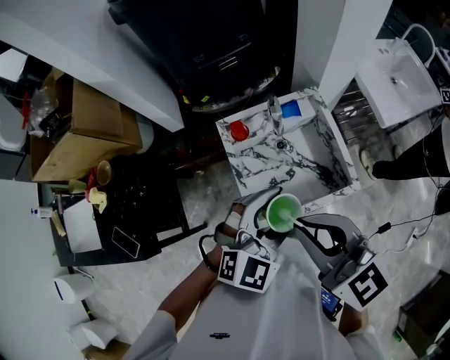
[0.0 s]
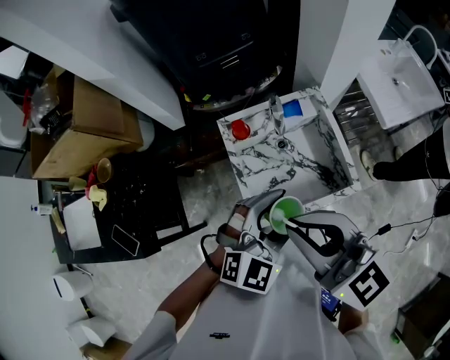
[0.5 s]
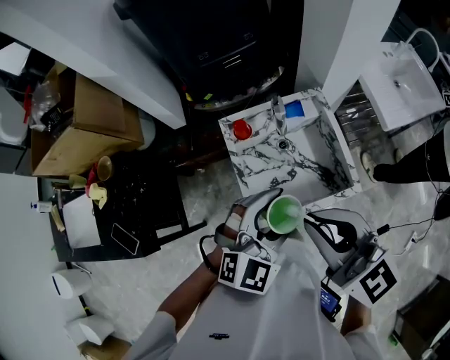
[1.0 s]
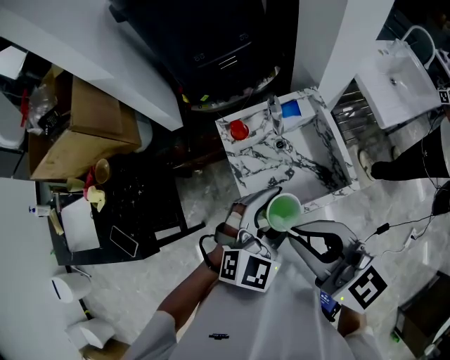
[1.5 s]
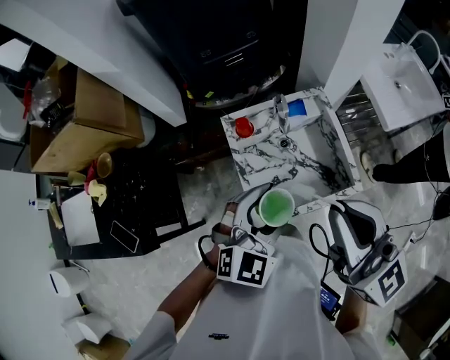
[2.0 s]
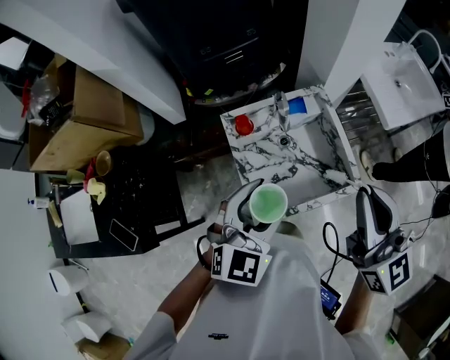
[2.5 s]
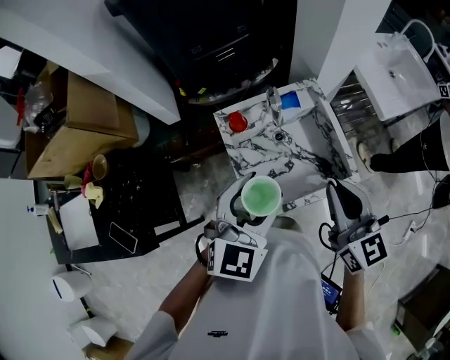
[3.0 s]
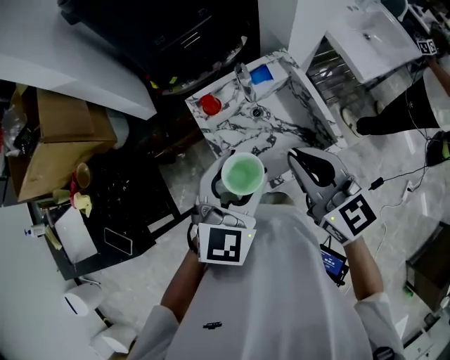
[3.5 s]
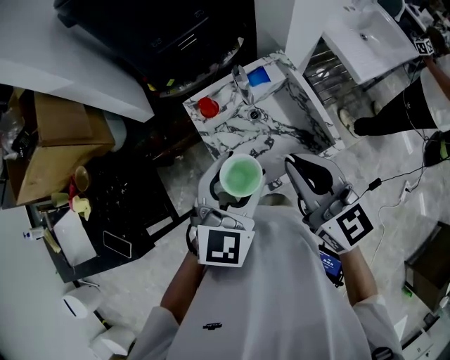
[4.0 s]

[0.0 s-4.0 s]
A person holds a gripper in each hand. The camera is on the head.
0.0 to 2.0 s: The right gripper travels upward by about 5 cm, and turns by about 20 degrees.
2.0 to 4.0 s: The right gripper heads downward, covering approximately 10 cm, and turns by roughly 20 degrees.

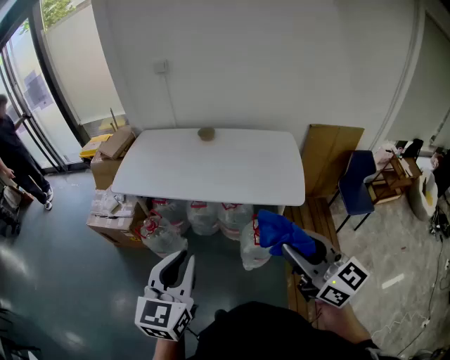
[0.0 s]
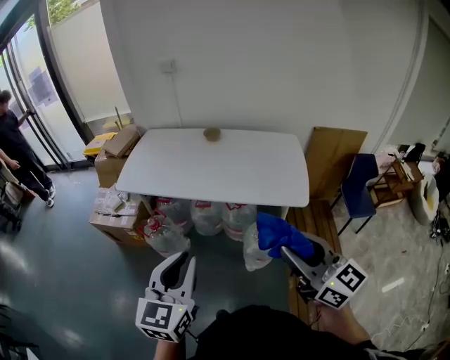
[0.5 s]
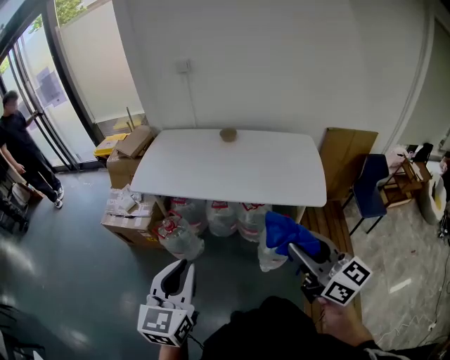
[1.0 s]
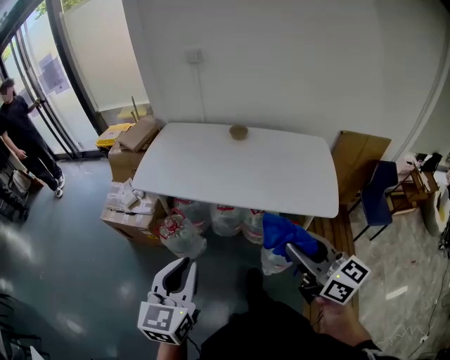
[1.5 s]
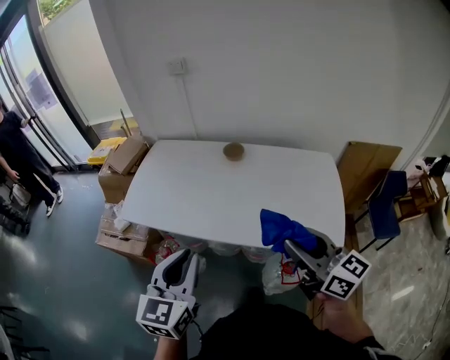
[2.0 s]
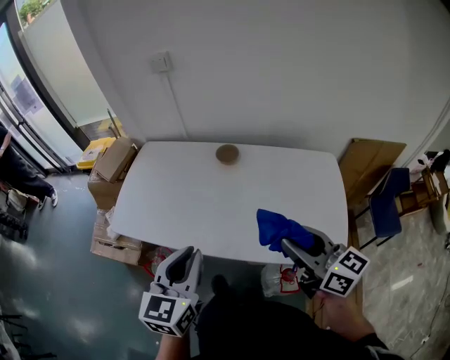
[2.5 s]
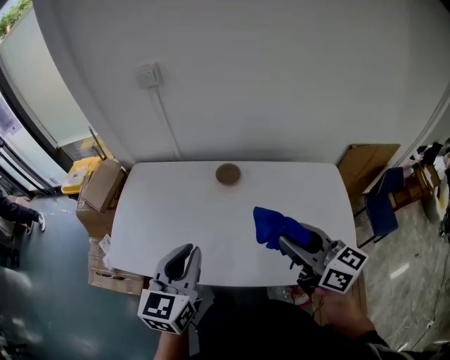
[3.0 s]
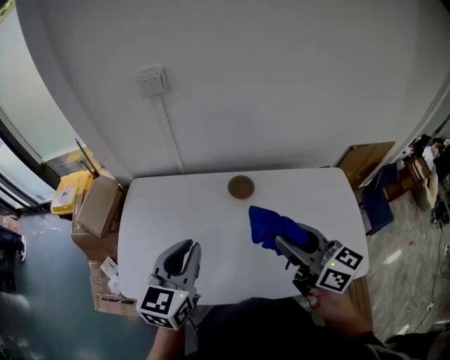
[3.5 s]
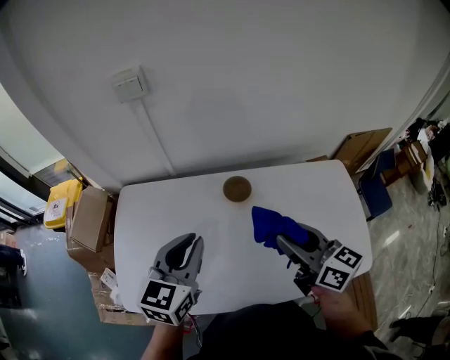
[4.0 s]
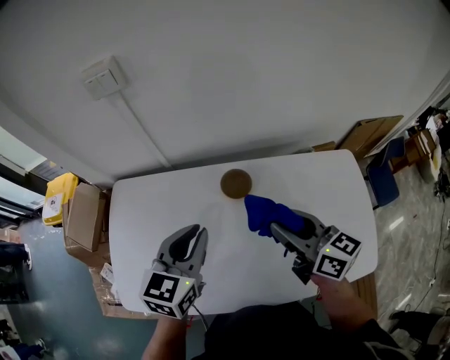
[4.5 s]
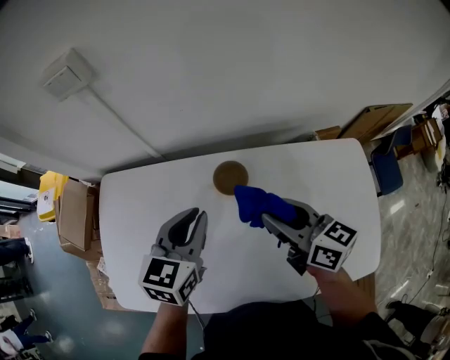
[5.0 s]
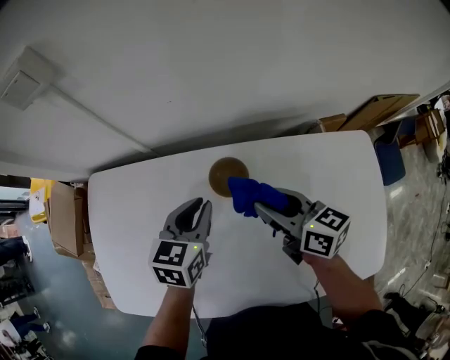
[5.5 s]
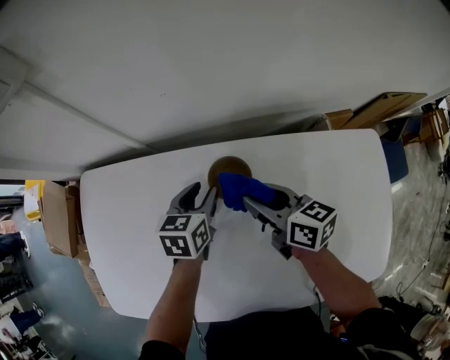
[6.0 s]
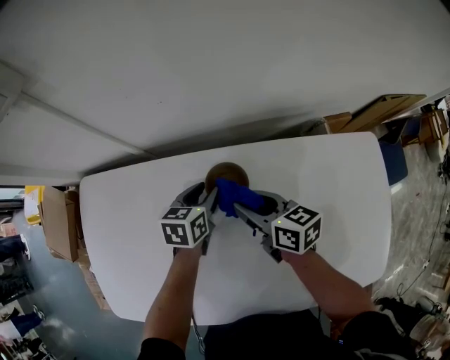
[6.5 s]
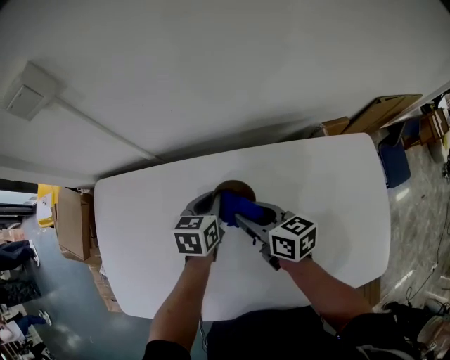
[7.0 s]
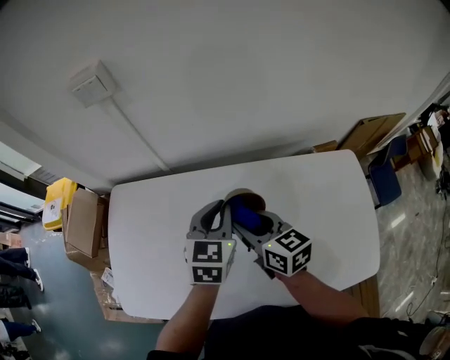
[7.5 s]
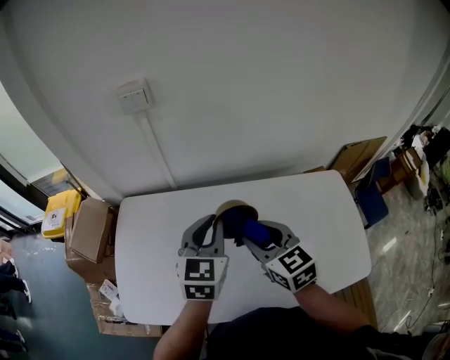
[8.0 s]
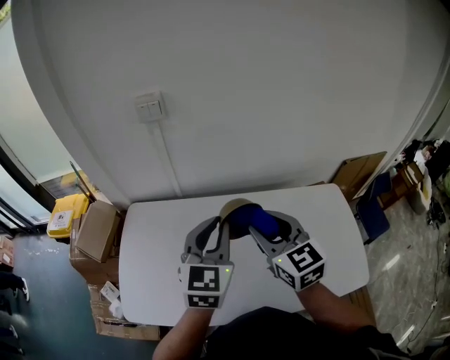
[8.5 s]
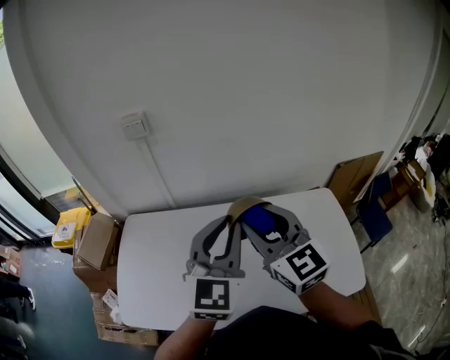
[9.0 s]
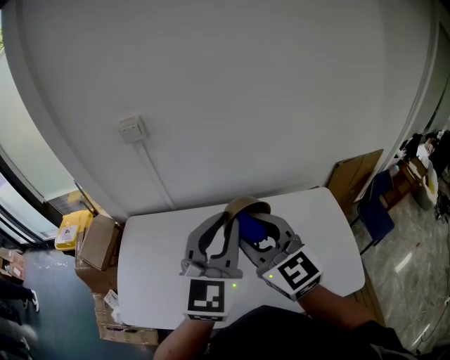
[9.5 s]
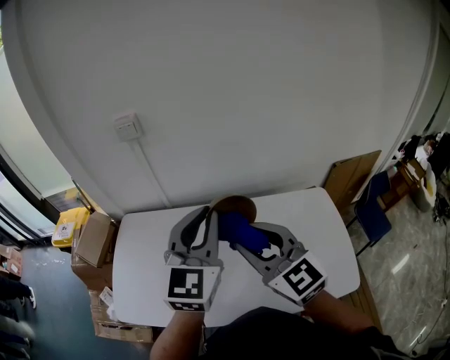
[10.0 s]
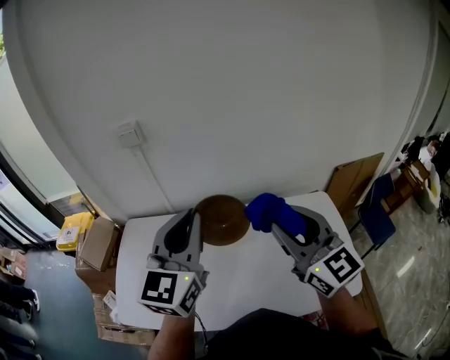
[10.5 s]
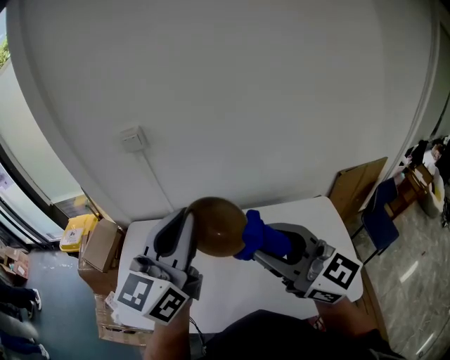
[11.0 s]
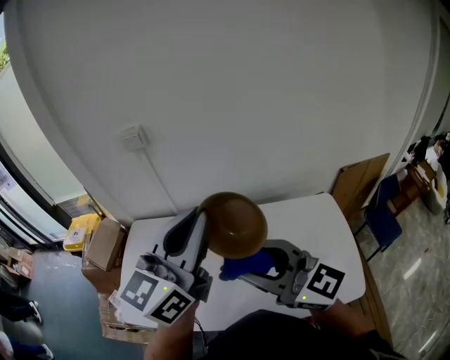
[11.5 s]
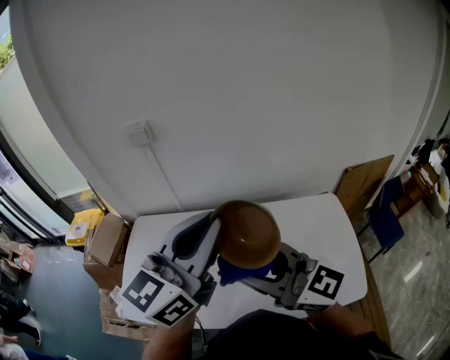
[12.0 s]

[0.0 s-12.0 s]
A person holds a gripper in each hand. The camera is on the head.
0.0 to 2.0 s: The grippers both shift forward by some 30 cm.
2.0 to 4.0 s: The two grippers go roughly 40 cm forward. The left gripper rotates some 20 degrees.
4.0 to 6.0 s: Both grippers travel together downward and forward, some 30 cm. The right gripper swivels roughly 20 degrees. Meanwhile the left gripper changes its angle by about 30 degrees, and opens up.
6.0 to 8.0 s: The left gripper travels upward and backward by some 30 cm, turns by roughly 30 degrees, and closes up; the right gripper goes approximately 25 cm upward, backward and to the left, and changes its angle by about 40 degrees.
8.0 to 10.0 s: The left gripper heads upward, to the right and backward, covering approximately 20 cm, and swivels about 20 degrees. The right gripper shifts some 15 cm upward, backward and to the right, and swivels some 30 degrees.
10.0 to 12.0 s: The right gripper travels backward and upward by roughly 10 cm, travels to the right and back again, some 10 cm each way, and rotates roughly 30 degrees. Meanwhile the left gripper travels upward and backward by about 10 cm, and changes its angle by roughly 30 degrees.

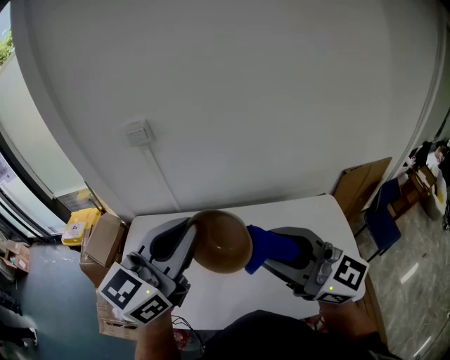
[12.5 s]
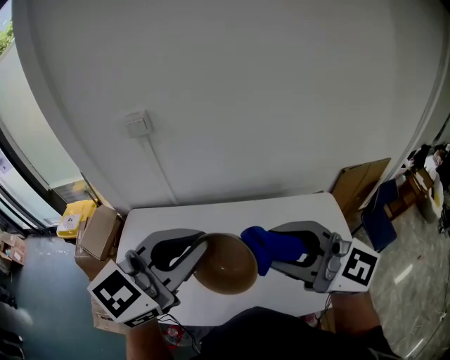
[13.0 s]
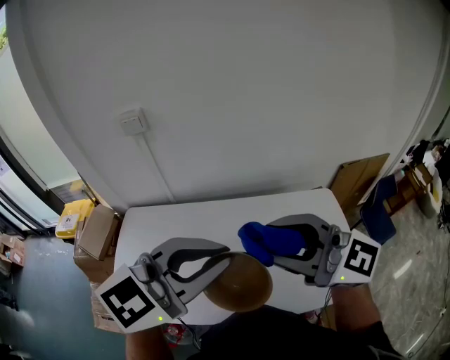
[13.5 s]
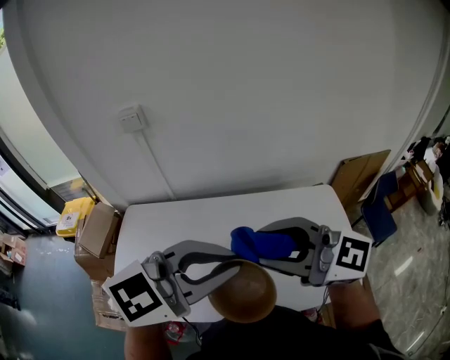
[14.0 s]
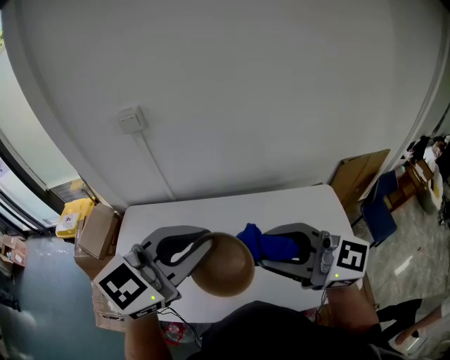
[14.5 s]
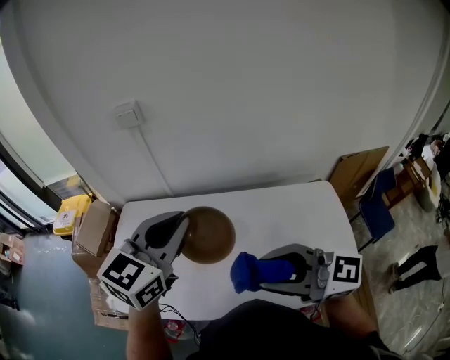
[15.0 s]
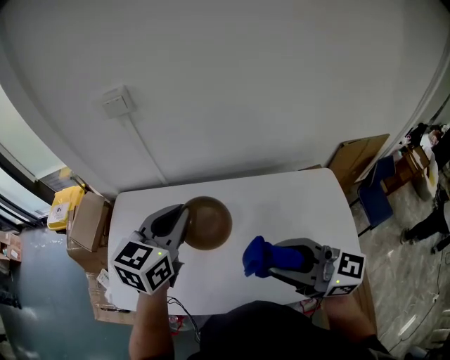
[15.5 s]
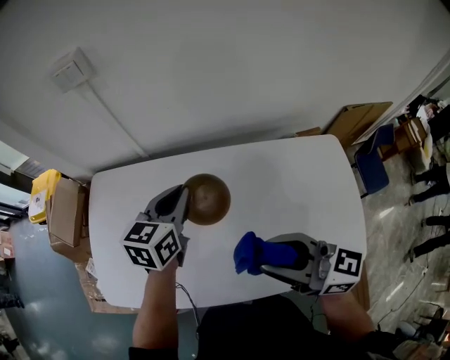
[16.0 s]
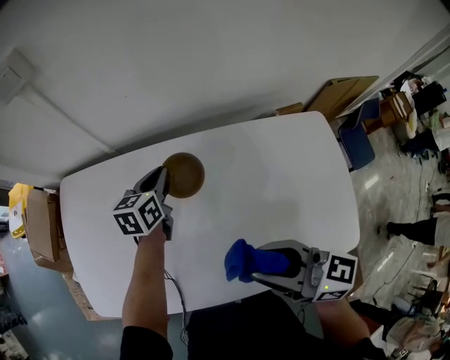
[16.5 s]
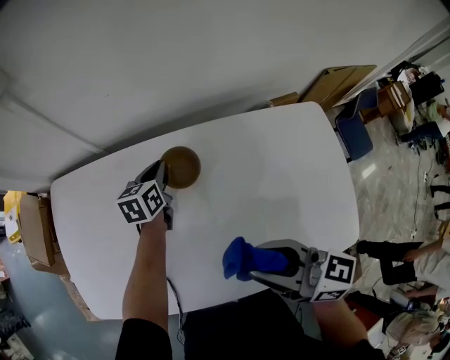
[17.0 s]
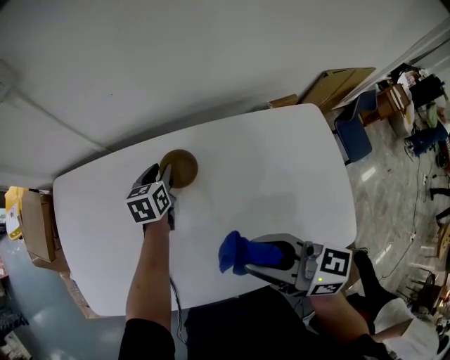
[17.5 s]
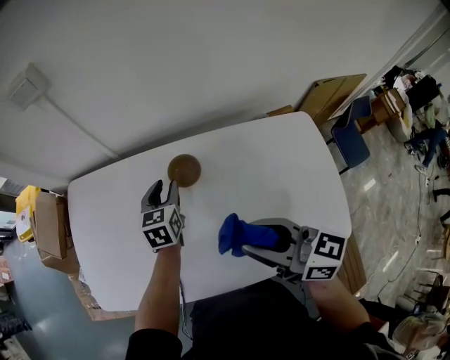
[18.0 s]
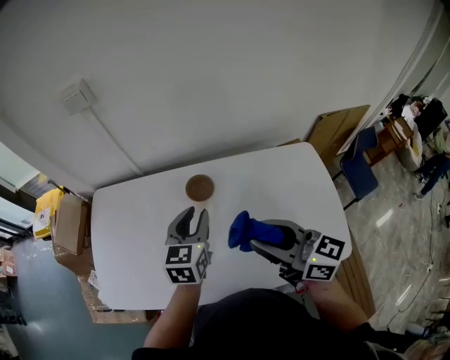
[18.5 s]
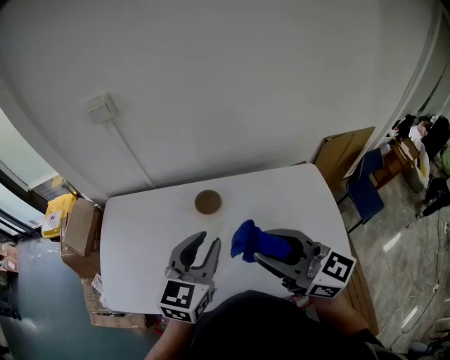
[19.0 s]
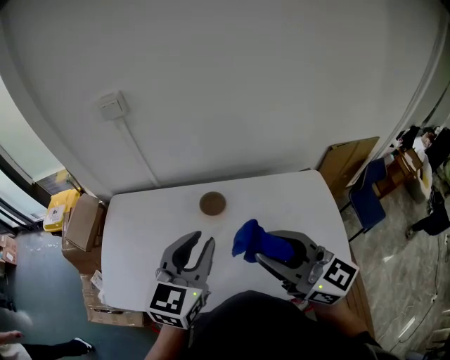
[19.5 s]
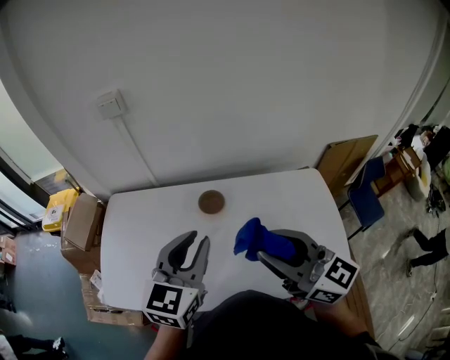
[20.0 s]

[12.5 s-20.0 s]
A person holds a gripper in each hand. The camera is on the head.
12.5 to 14.5 s: The left gripper rotates about 20 degrees.
14.5 to 16.5 s: The left gripper travels downward and forward by about 50 cm, and rotates around the line of its fingers by about 40 degrees, counterclockwise from behind, while the right gripper is displaced downward by roughly 20 cm, and rotates approximately 40 degrees.
16.5 to 18.0 s: The left gripper shifts about 5 cm backward, moves roughly 5 cm downward and comes back, and opens its fingers.
18.0 to 20.0 s: The left gripper shifts some 30 cm upward and backward, and rotates some 20 degrees. Meanwhile the right gripper heads upward, covering about 15 cm, and swivels some 20 degrees.

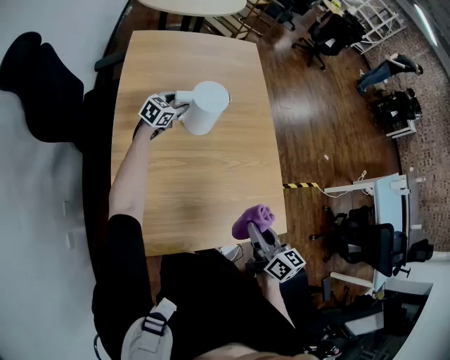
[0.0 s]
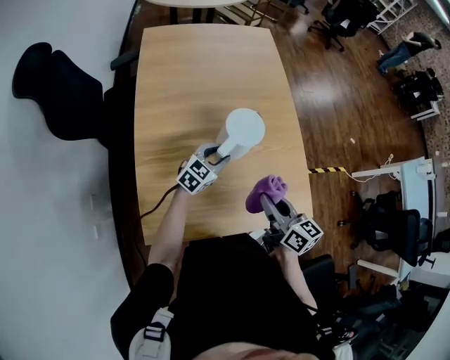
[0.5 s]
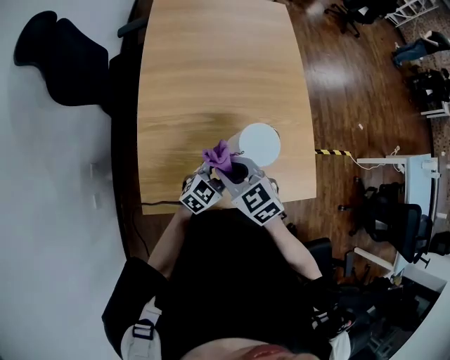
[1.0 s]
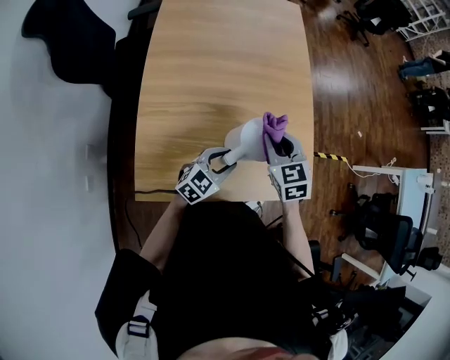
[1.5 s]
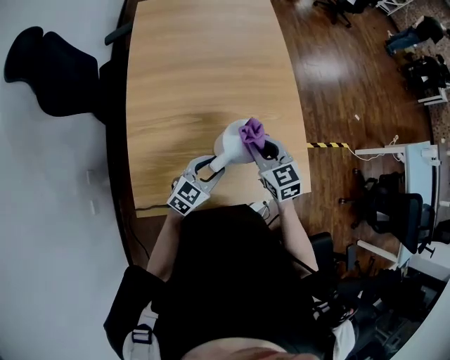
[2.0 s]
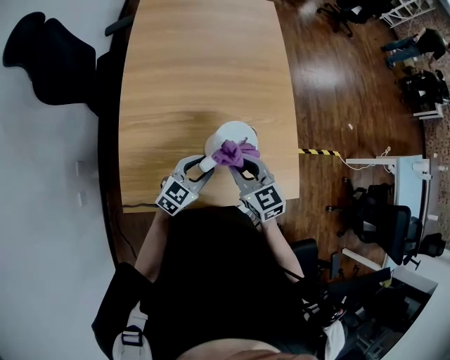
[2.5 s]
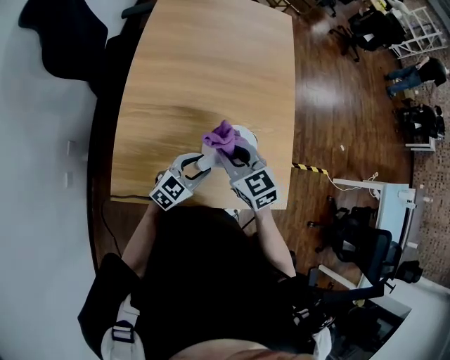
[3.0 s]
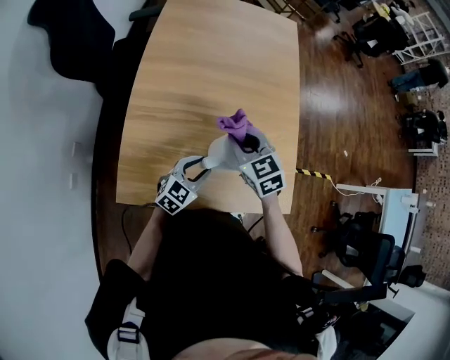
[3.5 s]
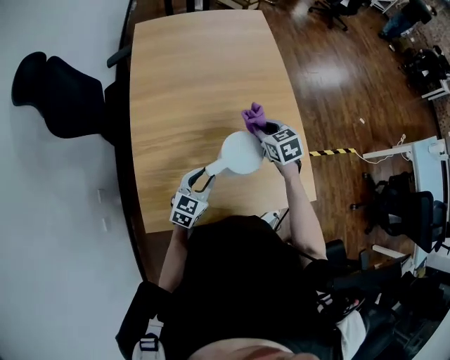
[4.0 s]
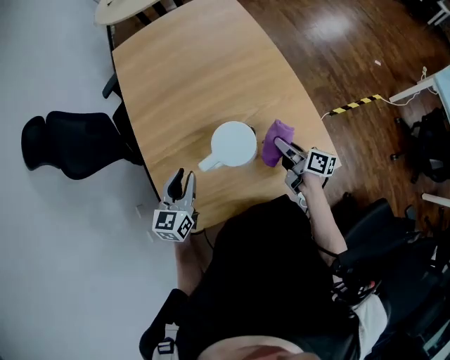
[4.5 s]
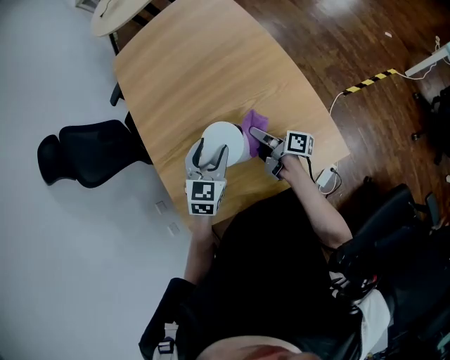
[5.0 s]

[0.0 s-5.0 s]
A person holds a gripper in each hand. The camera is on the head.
0.0 to 2.5 s: The left gripper is displaced backward and to the right by roughly 35 cm. The right gripper heads forward, covering roughly 10 cm, and rotates some 40 degrees.
2.5 to 5.0 s: The right gripper heads to the right and downward, covering some 25 cm, and rotates around the line of its fingers by roughly 100 degrees, clockwise from behind. Meanwhile the left gripper heads to the right, forward and upward, covering roughly 20 cm, and turns by about 30 degrees.
